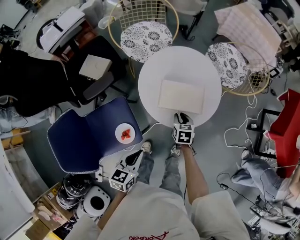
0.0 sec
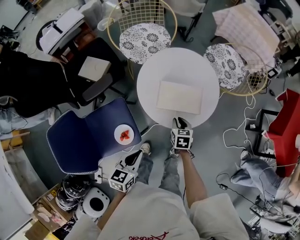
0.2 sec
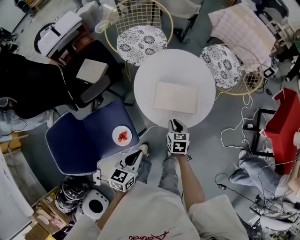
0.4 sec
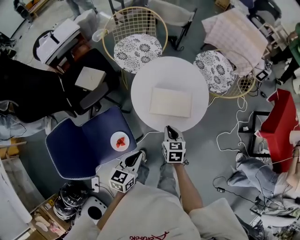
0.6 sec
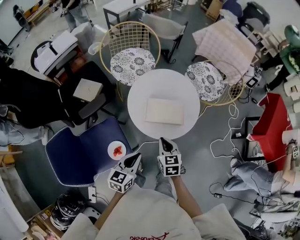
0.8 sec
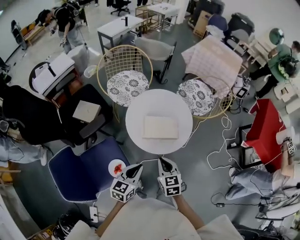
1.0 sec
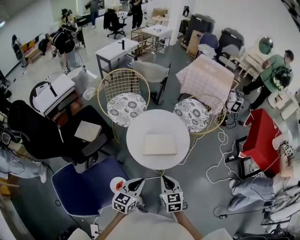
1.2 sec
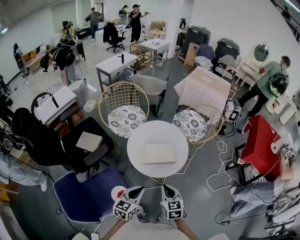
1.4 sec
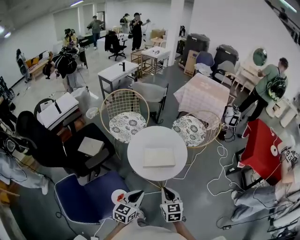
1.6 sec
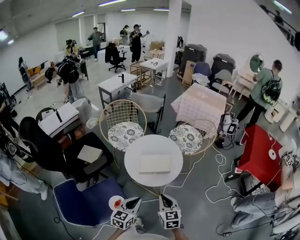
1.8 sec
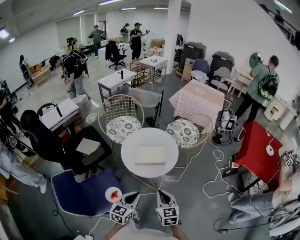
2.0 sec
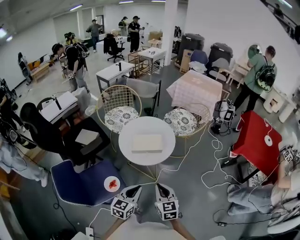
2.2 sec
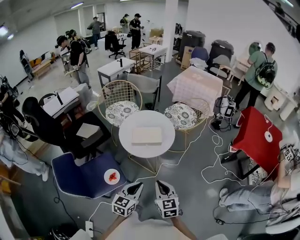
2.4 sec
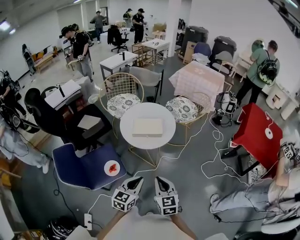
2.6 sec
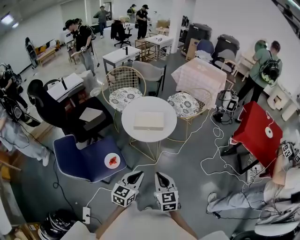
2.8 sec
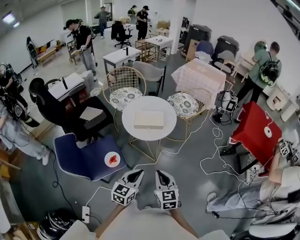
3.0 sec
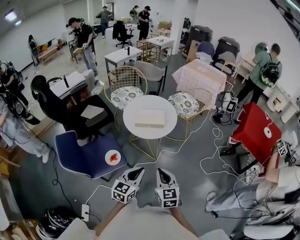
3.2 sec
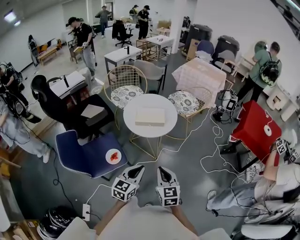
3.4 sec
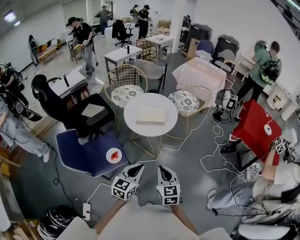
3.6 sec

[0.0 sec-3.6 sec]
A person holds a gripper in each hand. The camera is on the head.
0.0 sec to 1.8 sec: The left gripper travels upward by about 15 cm, and turns by about 20 degrees; the right gripper heads upward and backward, covering approximately 35 cm, and rotates roughly 30 degrees.
1.8 sec to 3.6 sec: Both grippers travel together backward and to the right, some 20 cm.

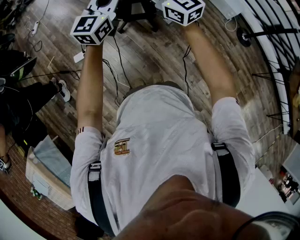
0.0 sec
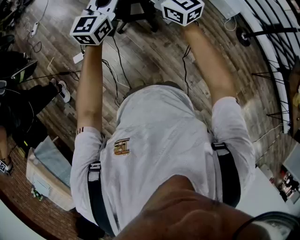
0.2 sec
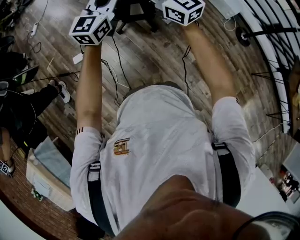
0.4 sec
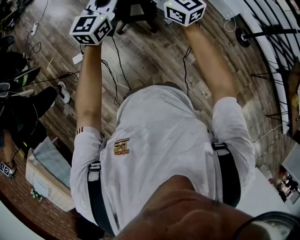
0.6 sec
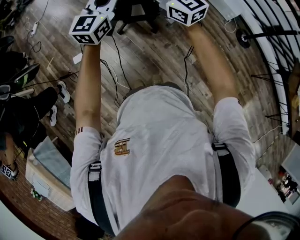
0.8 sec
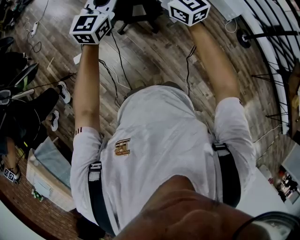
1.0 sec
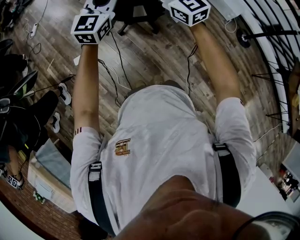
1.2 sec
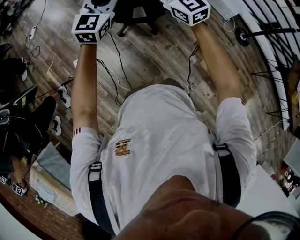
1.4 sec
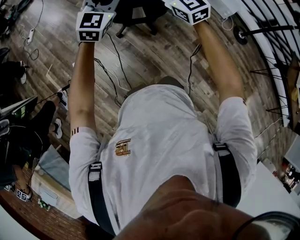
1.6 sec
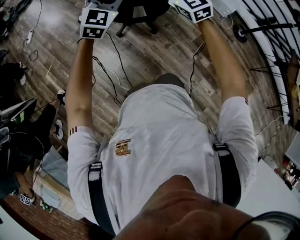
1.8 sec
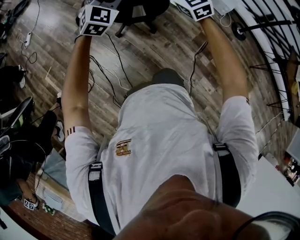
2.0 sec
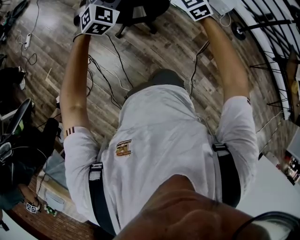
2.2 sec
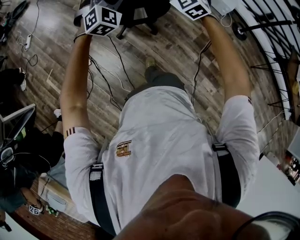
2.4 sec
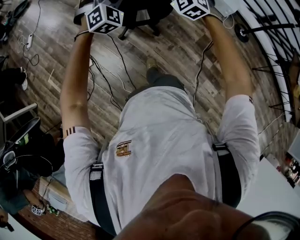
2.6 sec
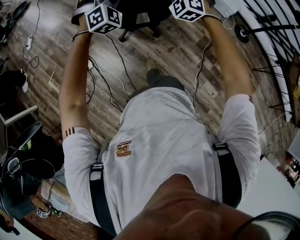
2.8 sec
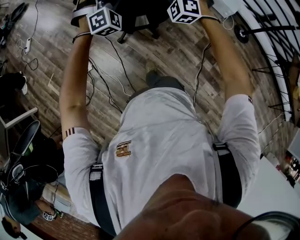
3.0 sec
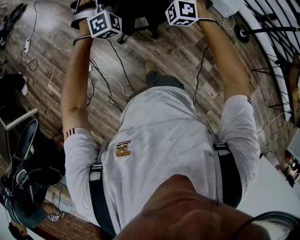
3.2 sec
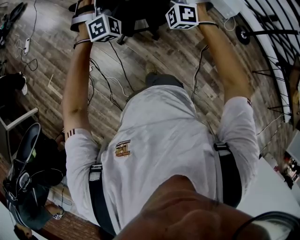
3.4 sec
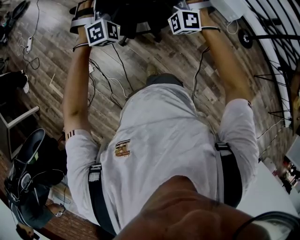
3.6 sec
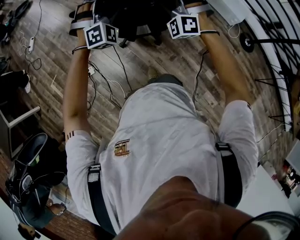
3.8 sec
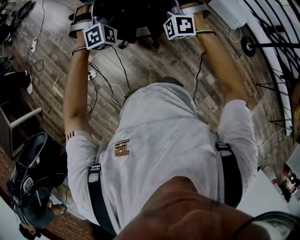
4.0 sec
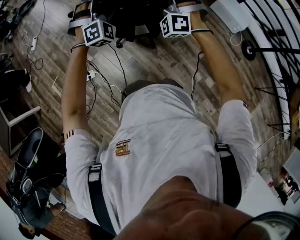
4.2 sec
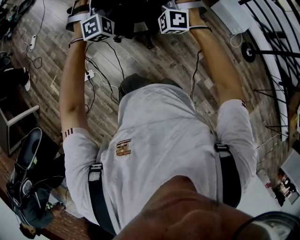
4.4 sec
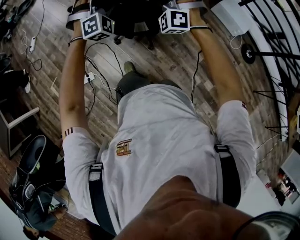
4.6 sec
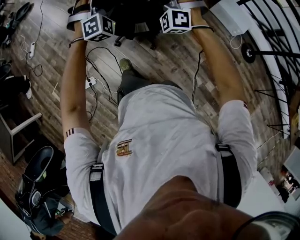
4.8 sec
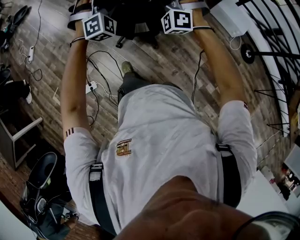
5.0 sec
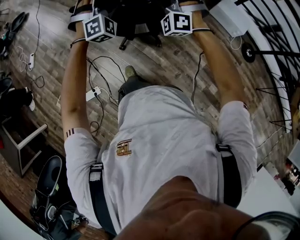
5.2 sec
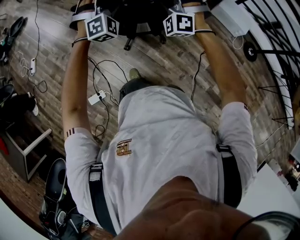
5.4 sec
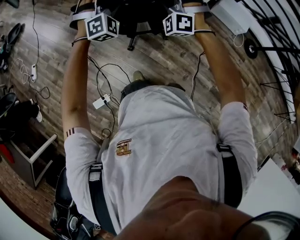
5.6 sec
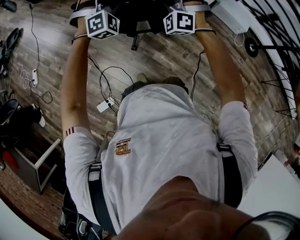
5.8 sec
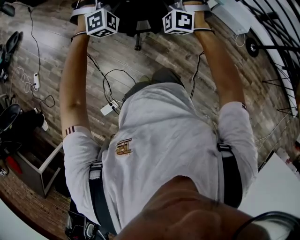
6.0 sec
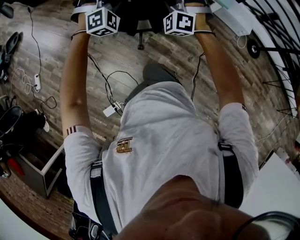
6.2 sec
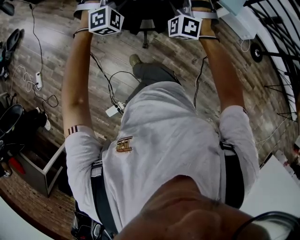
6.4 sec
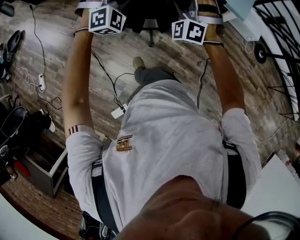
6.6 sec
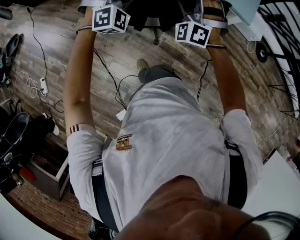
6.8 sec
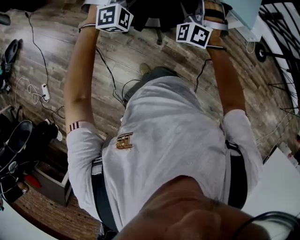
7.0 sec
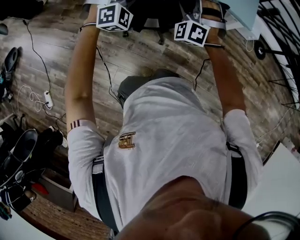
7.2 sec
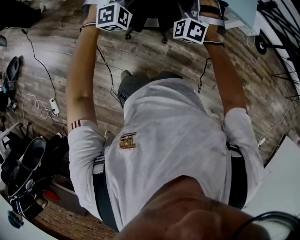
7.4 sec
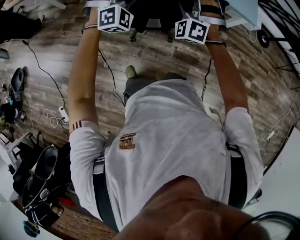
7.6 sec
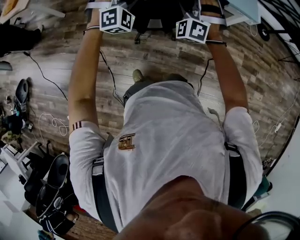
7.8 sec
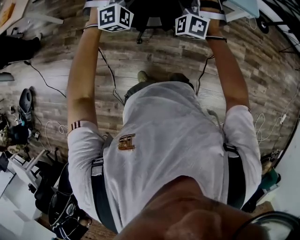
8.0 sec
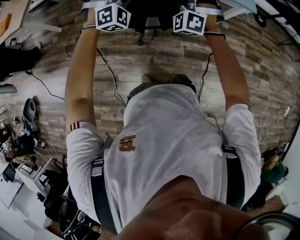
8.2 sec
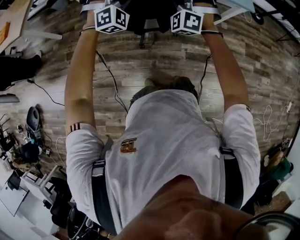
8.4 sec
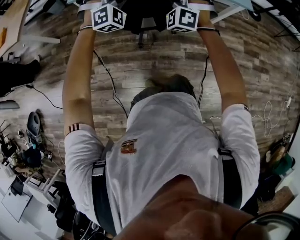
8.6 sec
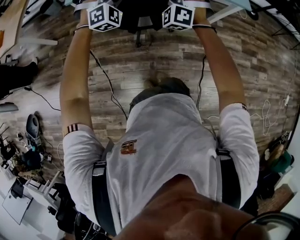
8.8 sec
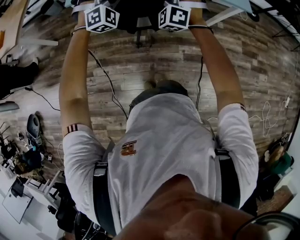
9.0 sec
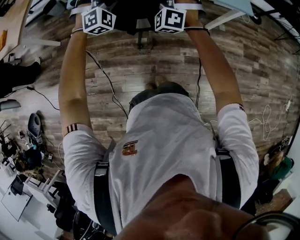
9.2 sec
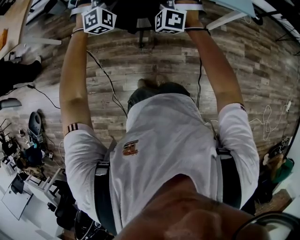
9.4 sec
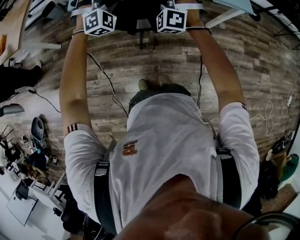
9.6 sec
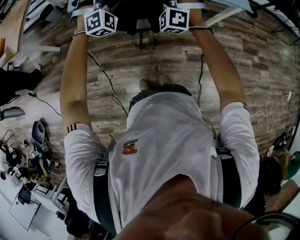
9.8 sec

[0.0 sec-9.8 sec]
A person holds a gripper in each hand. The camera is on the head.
0.0 sec to 1.4 sec: The grippers both shift forward by roughly 5 cm. The right gripper opens up.
1.4 sec to 2.8 sec: The two grippers go some 15 cm forward and downward. The left gripper rotates around the line of its fingers by some 50 degrees, clockwise from behind, and opens up. The right gripper rotates approximately 60 degrees, and opens its fingers.
2.8 sec to 4.2 sec: The grippers both shift forward by about 20 cm.
4.2 sec to 5.6 sec: The two grippers go about 35 cm forward.
5.6 sec to 7.0 sec: The pair of grippers is taken to the left and forward, approximately 40 cm. The left gripper changes its angle by roughly 20 degrees, while the right gripper turns by about 20 degrees.
7.0 sec to 8.4 sec: Both grippers travel together to the left and forward, some 30 cm. The right gripper turns by about 20 degrees.
8.4 sec to 9.8 sec: The grippers both shift to the left and forward by approximately 10 cm.

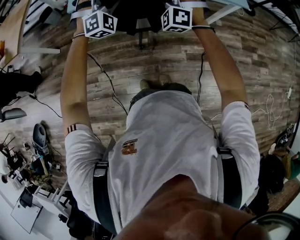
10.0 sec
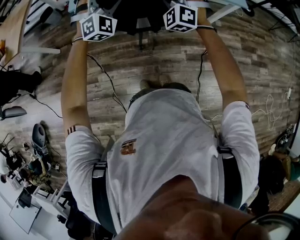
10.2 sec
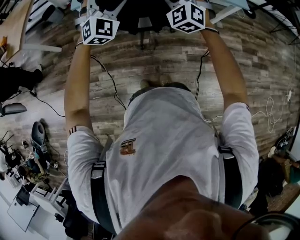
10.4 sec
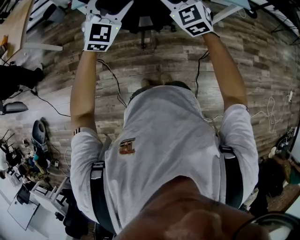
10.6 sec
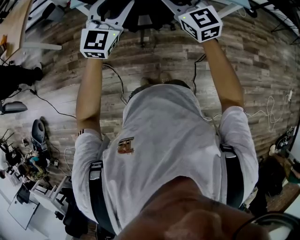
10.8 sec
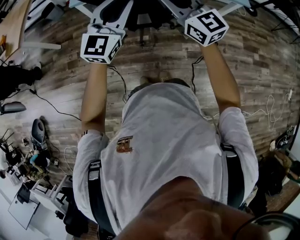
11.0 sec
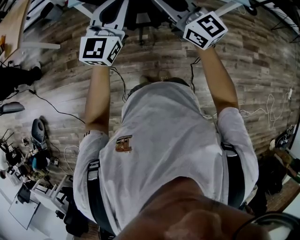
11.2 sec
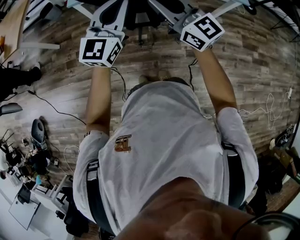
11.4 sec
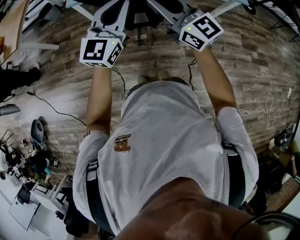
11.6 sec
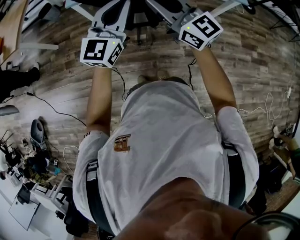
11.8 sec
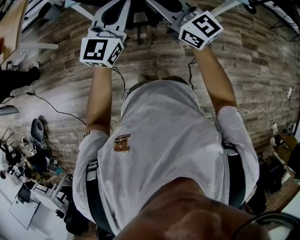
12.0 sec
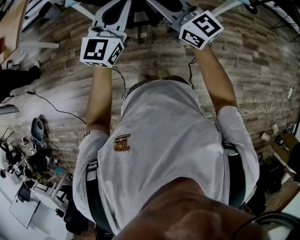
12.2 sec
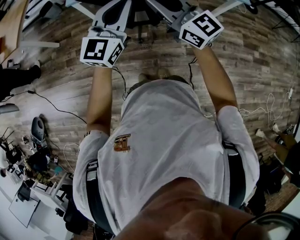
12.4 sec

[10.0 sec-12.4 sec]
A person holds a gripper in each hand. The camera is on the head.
10.0 sec to 11.2 sec: The grippers both shift backward and upward by some 15 cm. The right gripper rolls clockwise, seen from behind, by about 70 degrees, and closes, while the left gripper rotates around the line of its fingers by some 60 degrees, counterclockwise from behind, and closes up.
11.2 sec to 12.4 sec: The grippers make only small movements.

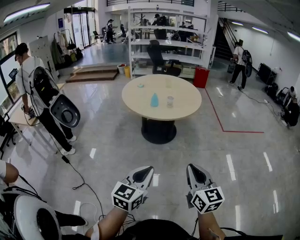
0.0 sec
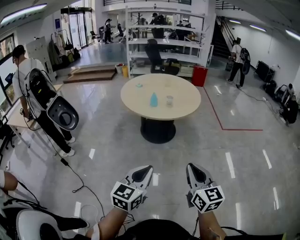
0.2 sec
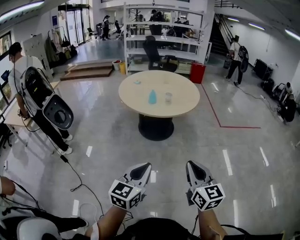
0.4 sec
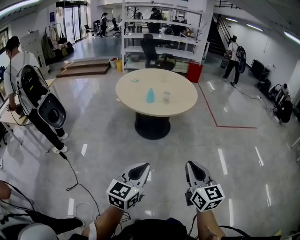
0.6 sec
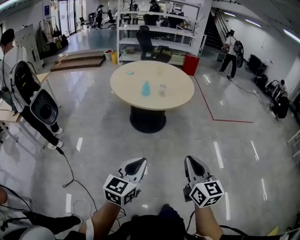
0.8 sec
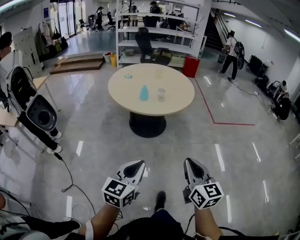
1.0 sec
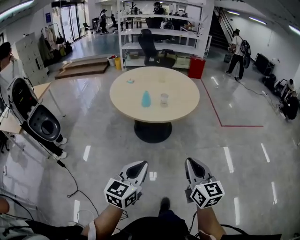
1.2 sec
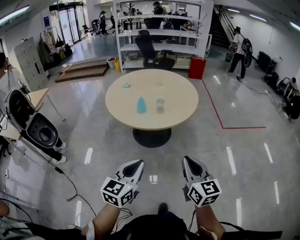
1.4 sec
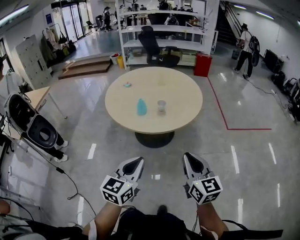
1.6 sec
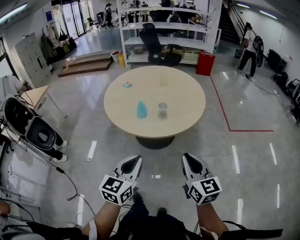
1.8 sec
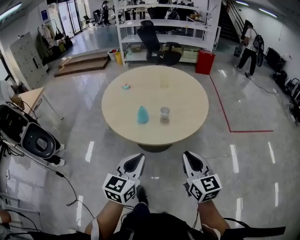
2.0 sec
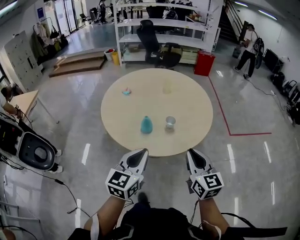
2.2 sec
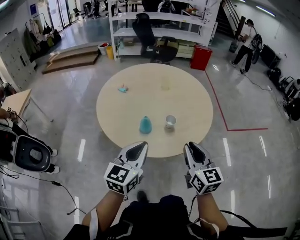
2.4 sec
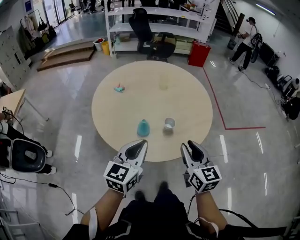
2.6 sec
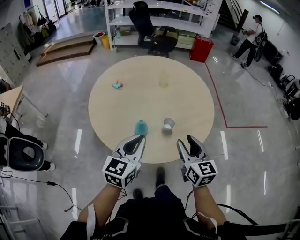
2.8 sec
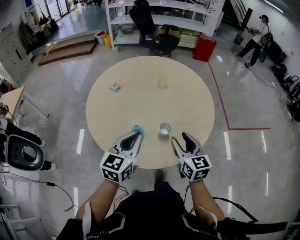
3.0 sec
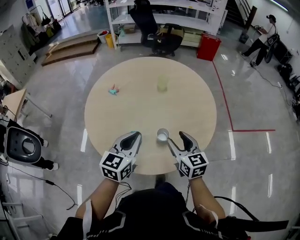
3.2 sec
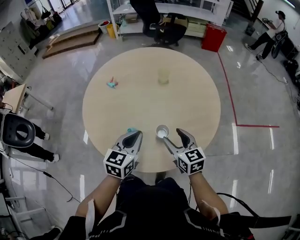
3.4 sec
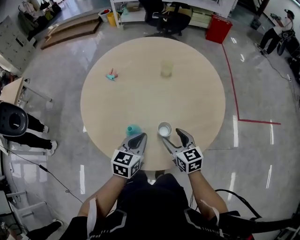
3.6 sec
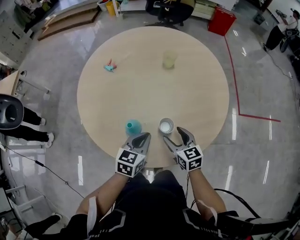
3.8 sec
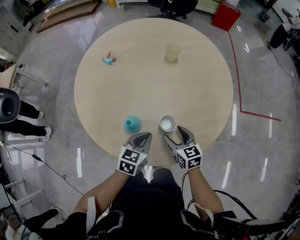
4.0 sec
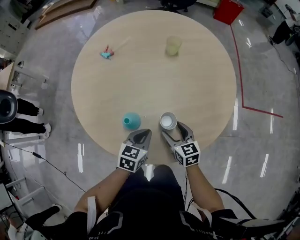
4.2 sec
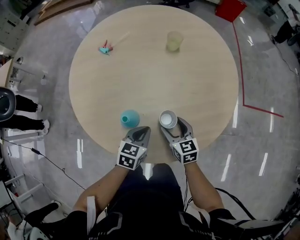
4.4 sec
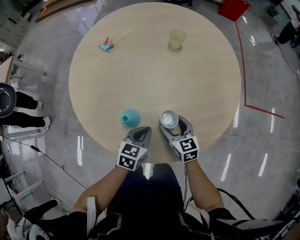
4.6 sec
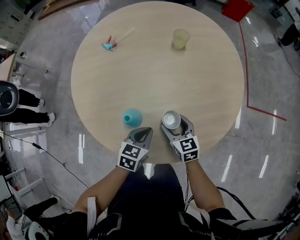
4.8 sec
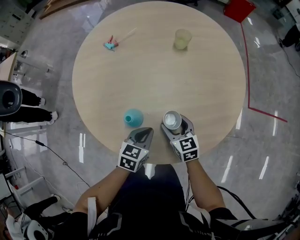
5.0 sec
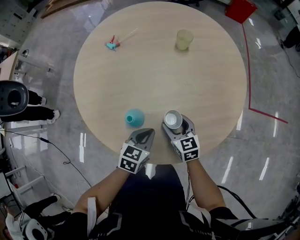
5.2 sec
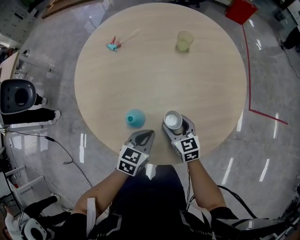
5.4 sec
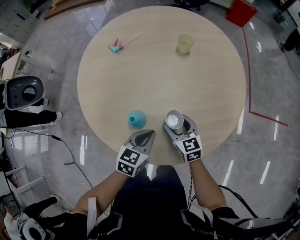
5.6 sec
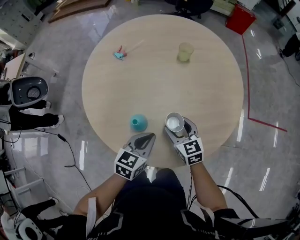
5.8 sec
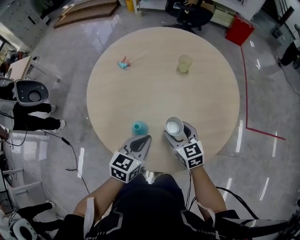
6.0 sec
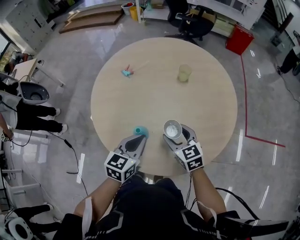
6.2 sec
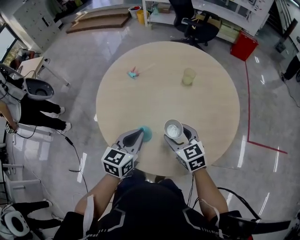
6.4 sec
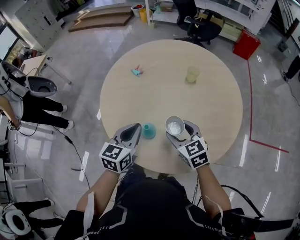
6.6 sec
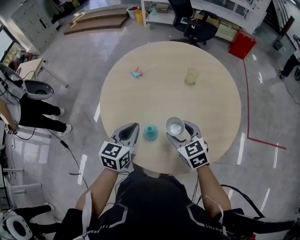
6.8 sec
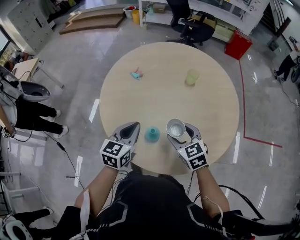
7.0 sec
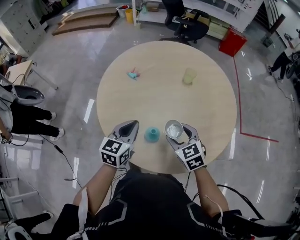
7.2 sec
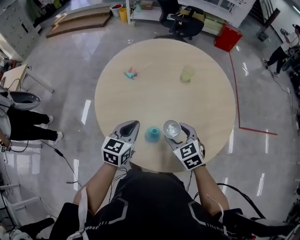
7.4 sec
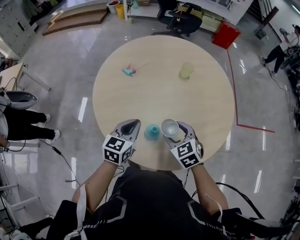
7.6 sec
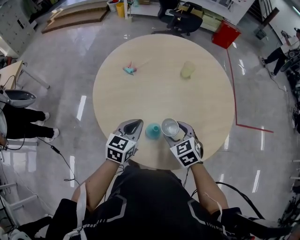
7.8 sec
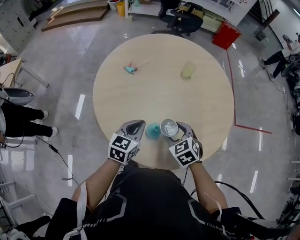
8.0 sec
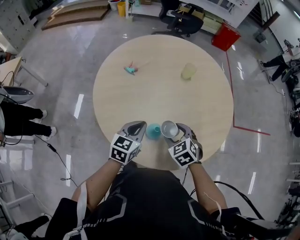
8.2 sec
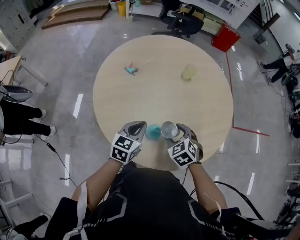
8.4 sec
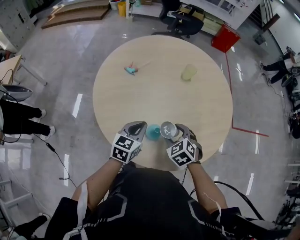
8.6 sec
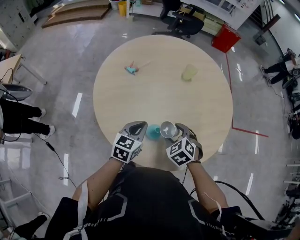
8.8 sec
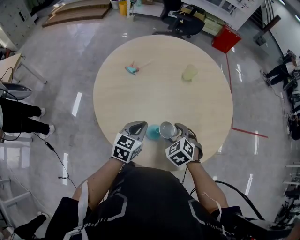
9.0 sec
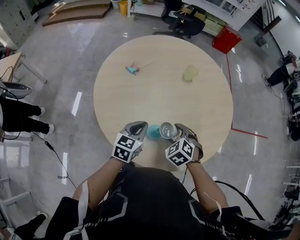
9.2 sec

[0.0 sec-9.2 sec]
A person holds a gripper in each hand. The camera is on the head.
0.0 sec to 1.6 sec: Both grippers travel together forward, some 30 cm.
1.6 sec to 3.0 sec: The pair of grippers is taken forward, approximately 40 cm. The right gripper opens up.
3.0 sec to 4.6 sec: Both grippers travel together downward, roughly 25 cm. The left gripper swivels about 30 degrees. The right gripper turns by roughly 20 degrees, and opens its fingers.
4.6 sec to 6.2 sec: The two grippers go about 15 cm upward.
6.2 sec to 7.6 sec: The left gripper travels to the left and forward by some 10 cm. Meanwhile the right gripper shifts some 5 cm to the left.
7.6 sec to 9.2 sec: The right gripper swivels roughly 20 degrees.
